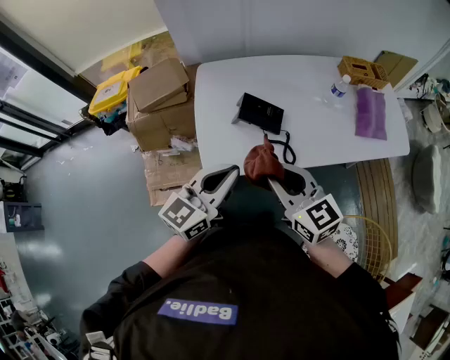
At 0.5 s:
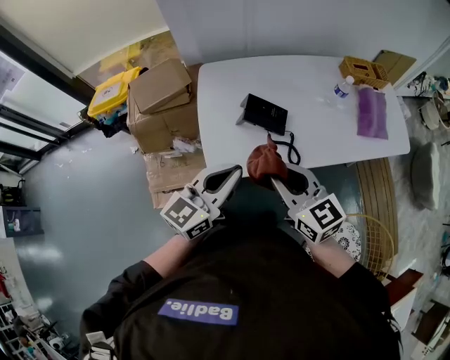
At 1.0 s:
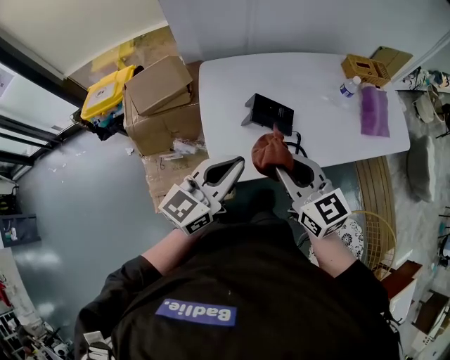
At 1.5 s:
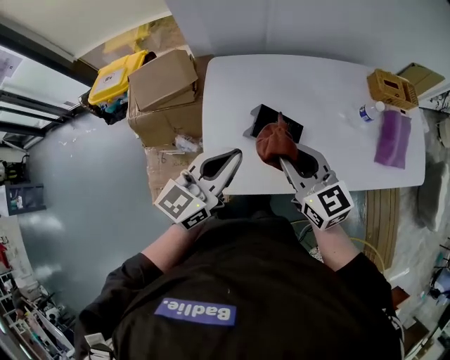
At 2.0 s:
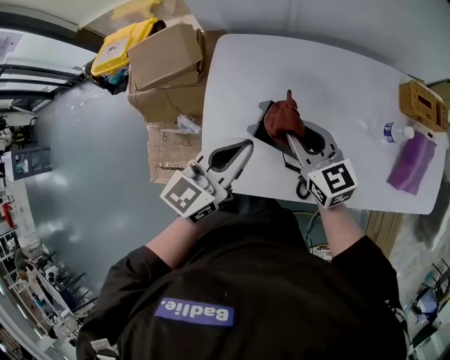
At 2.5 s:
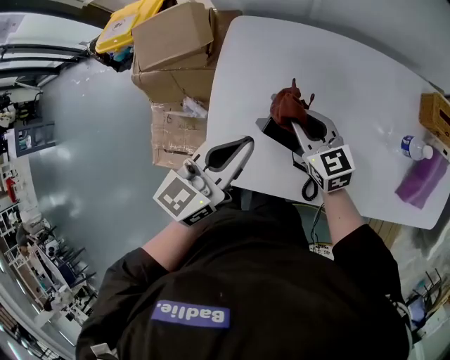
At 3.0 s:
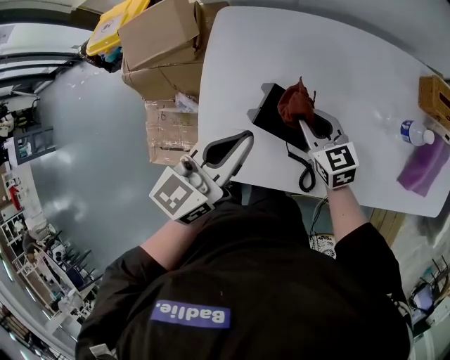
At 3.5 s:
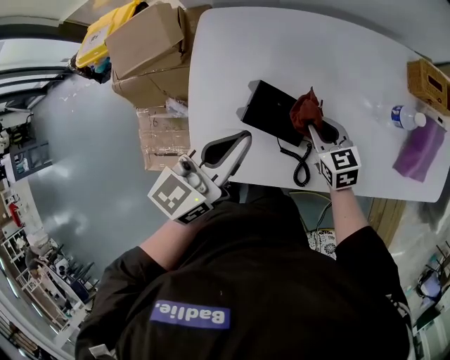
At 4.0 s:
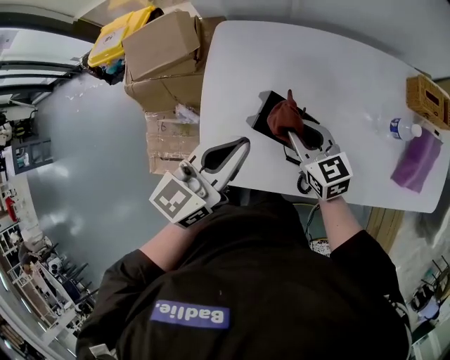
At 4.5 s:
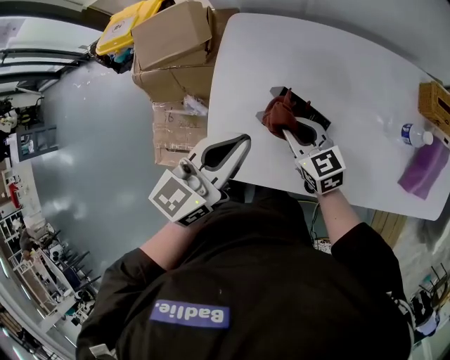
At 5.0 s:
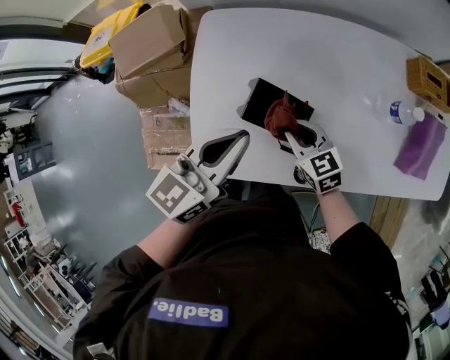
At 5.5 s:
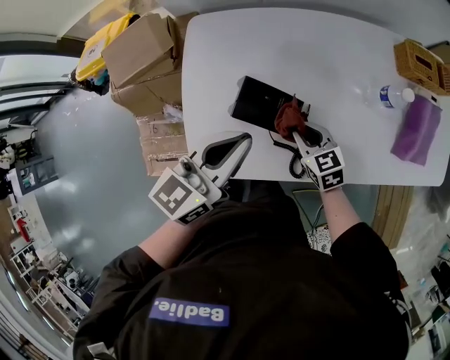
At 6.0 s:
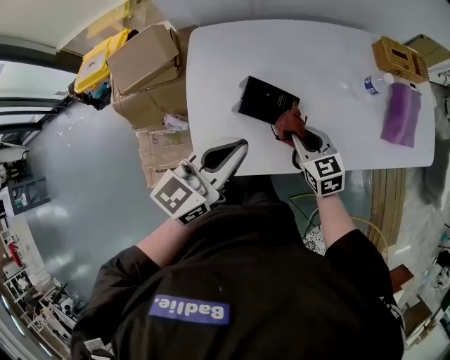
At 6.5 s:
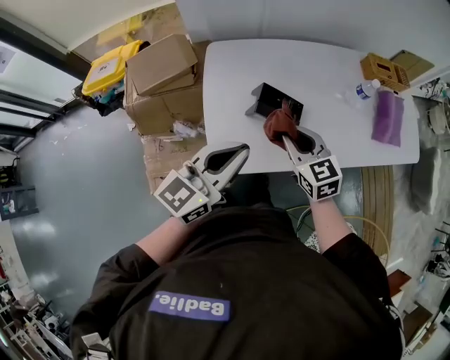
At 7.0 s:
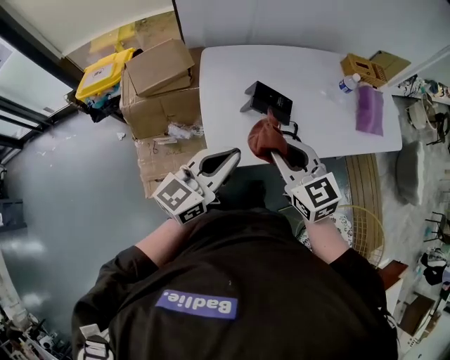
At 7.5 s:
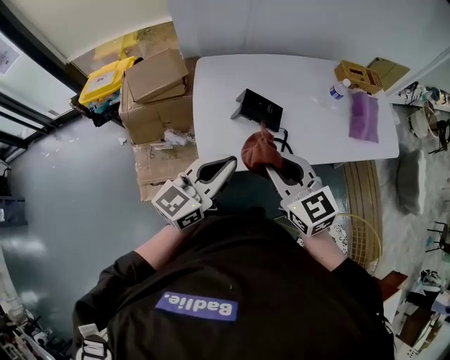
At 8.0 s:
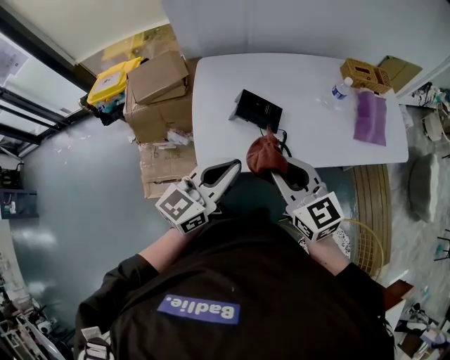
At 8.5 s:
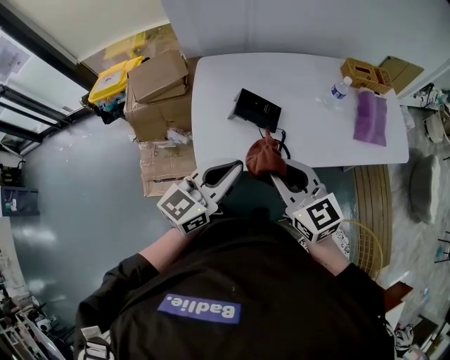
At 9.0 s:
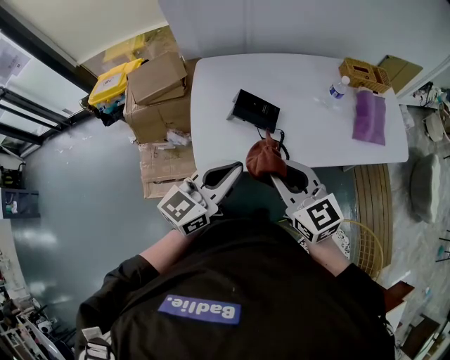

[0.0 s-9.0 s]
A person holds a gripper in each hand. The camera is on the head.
0.0 to 2.0 s: The left gripper heads forward, covering about 20 cm. The right gripper is displaced forward and downward by some 30 cm.
2.0 to 4.5 s: The right gripper is displaced downward by approximately 10 cm.
4.5 to 7.0 s: The left gripper goes approximately 20 cm backward, and rotates approximately 20 degrees. The right gripper goes roughly 30 cm upward and backward, and swivels approximately 20 degrees.
7.0 to 9.0 s: The grippers both shift to the right by roughly 10 cm.

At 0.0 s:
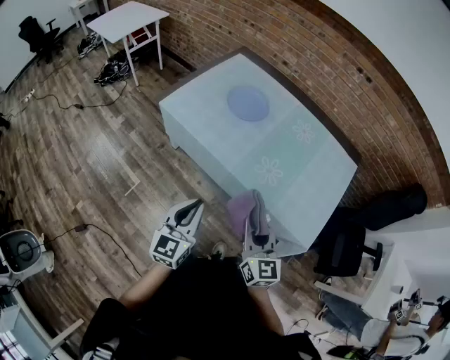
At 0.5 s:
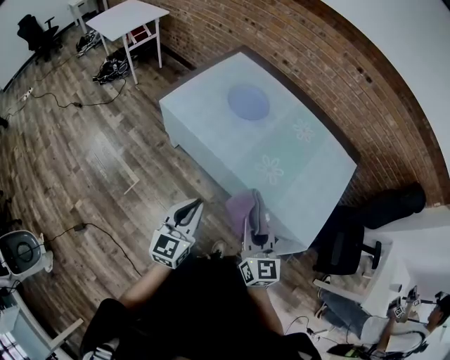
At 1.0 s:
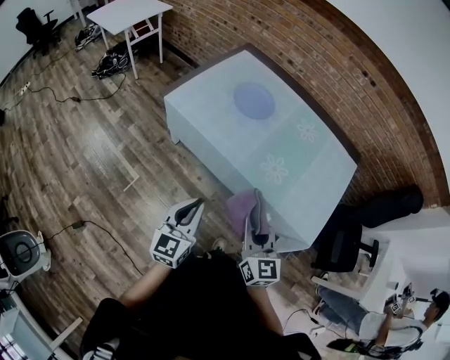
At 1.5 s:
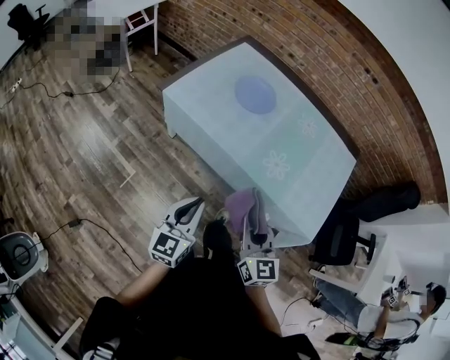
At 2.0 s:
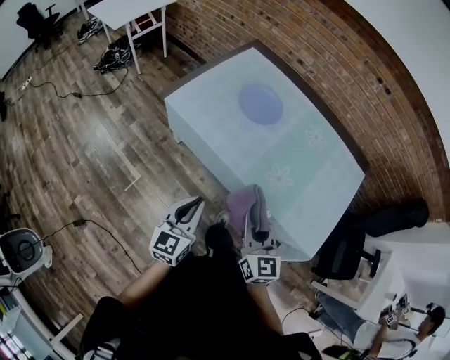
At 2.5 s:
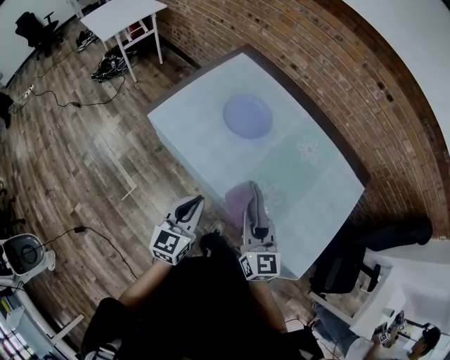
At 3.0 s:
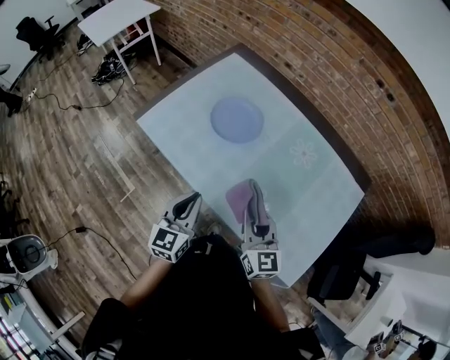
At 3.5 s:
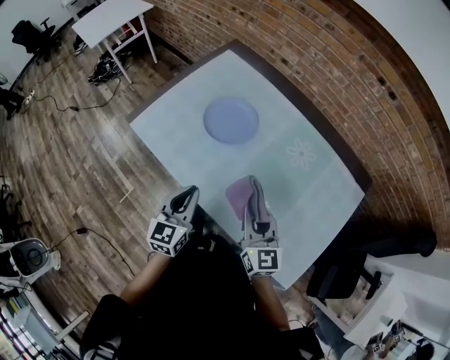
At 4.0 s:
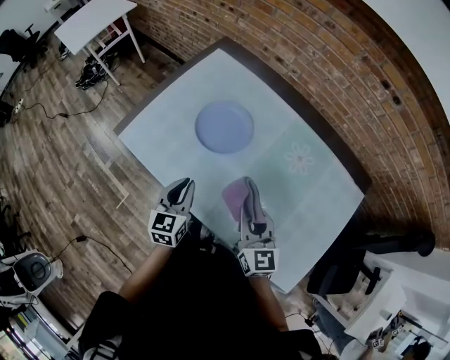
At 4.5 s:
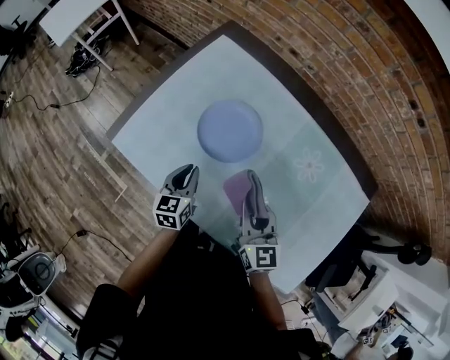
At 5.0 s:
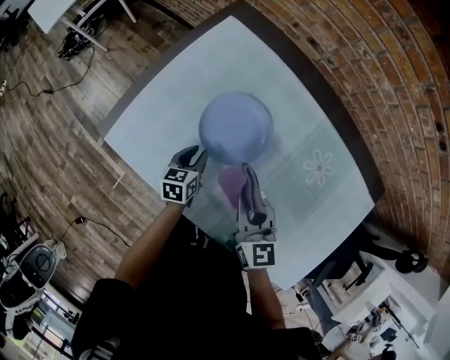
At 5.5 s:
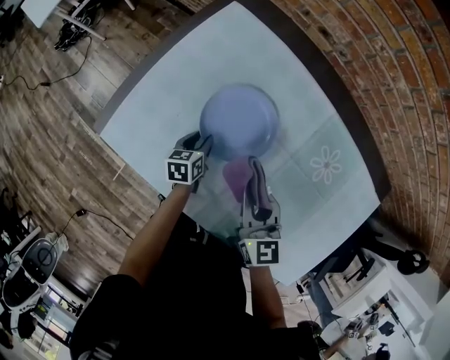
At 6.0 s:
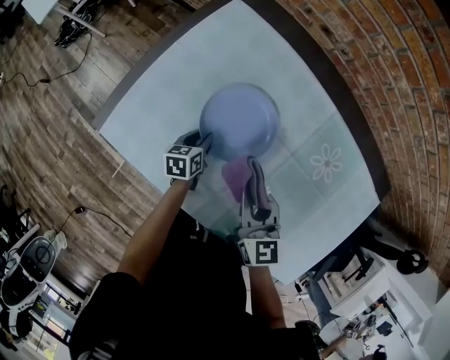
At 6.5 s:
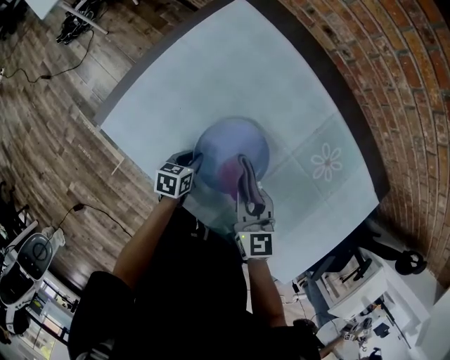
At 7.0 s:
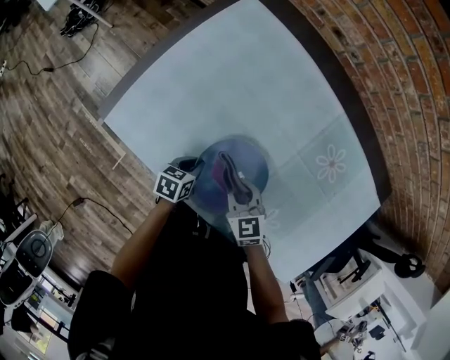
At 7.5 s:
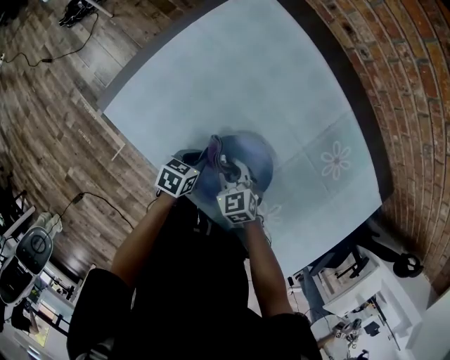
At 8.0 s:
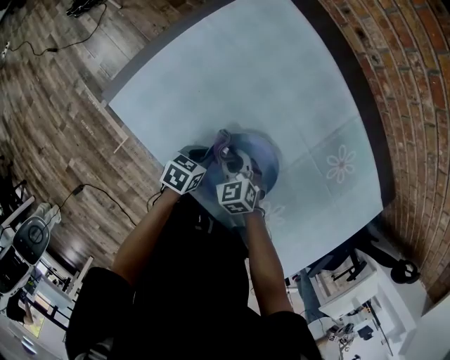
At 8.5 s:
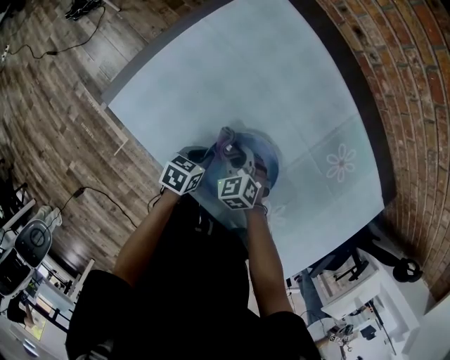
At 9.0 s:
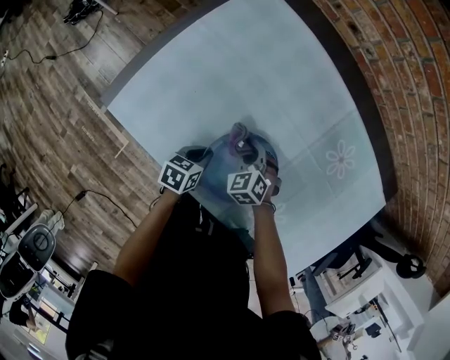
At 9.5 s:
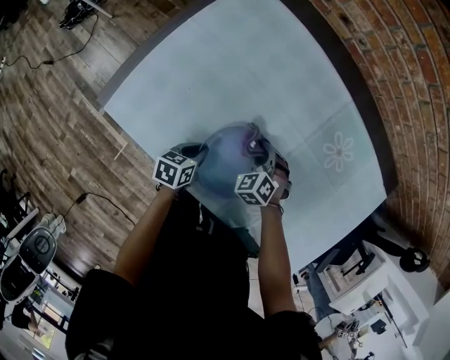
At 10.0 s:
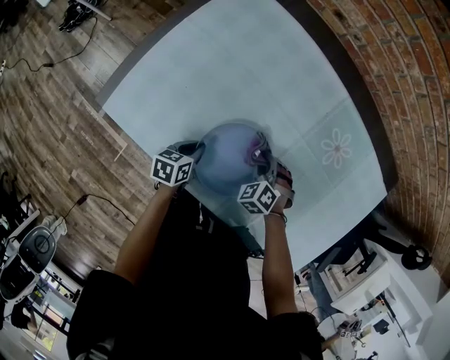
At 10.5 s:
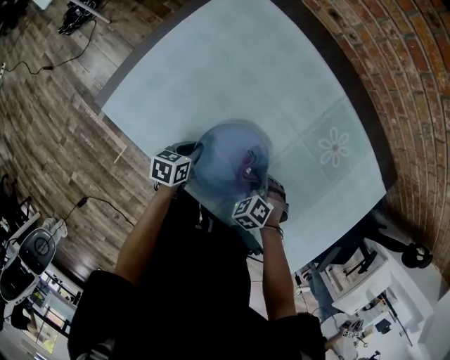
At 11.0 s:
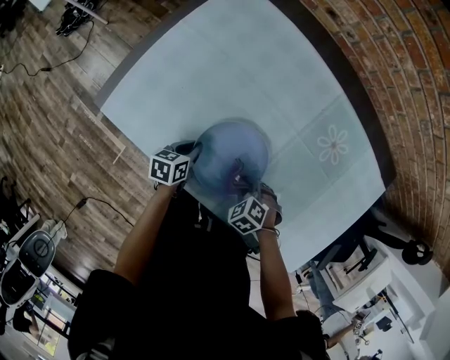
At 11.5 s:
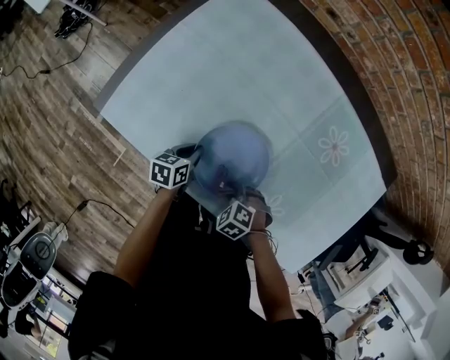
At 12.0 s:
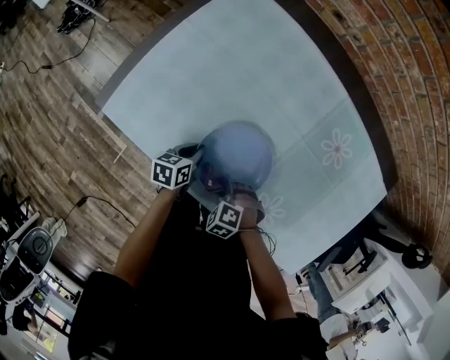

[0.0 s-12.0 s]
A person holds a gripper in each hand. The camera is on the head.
0.0 to 2.0 s: Both grippers move forward and to the left, roughly 10 cm.
2.0 to 4.0 s: Both grippers move forward and to the right, roughly 35 cm.
4.0 to 6.0 s: The right gripper goes approximately 20 cm forward, downward and to the left. Meanwhile the left gripper goes some 35 cm downward and forward, rotates roughly 30 degrees, and opens.
6.0 to 8.0 s: The right gripper shifts some 20 cm downward and to the left, and swivels approximately 40 degrees. Meanwhile the left gripper travels backward by some 10 cm, and swivels approximately 20 degrees.
8.0 to 10.0 s: The right gripper moves to the right, roughly 15 cm, and swivels about 30 degrees.
10.0 to 12.0 s: The right gripper changes place by roughly 15 cm, and turns by about 30 degrees.

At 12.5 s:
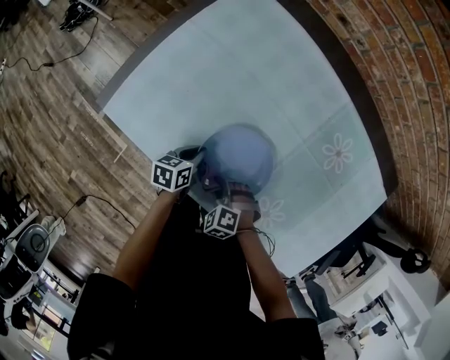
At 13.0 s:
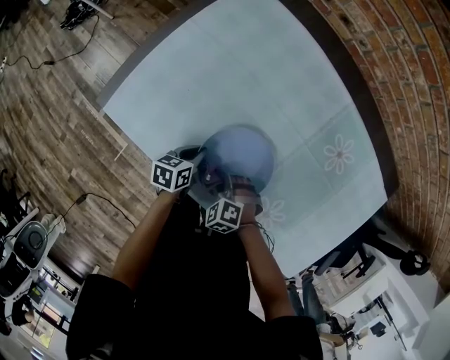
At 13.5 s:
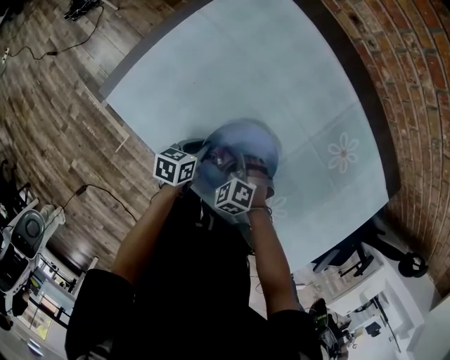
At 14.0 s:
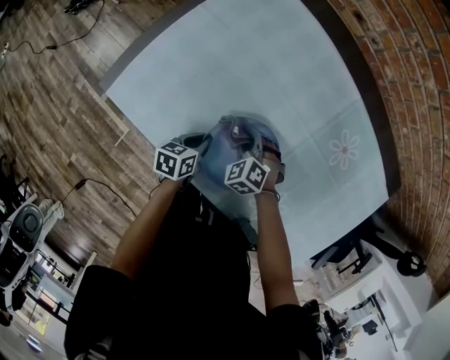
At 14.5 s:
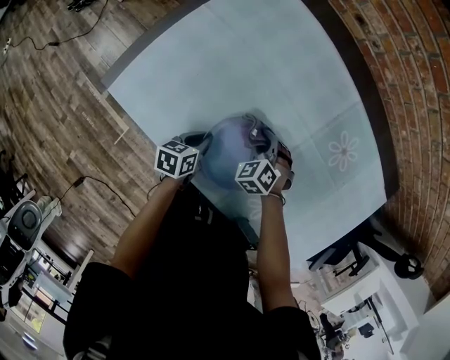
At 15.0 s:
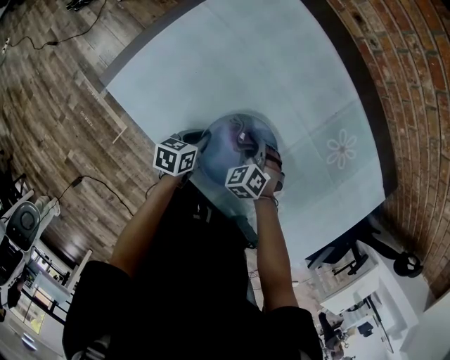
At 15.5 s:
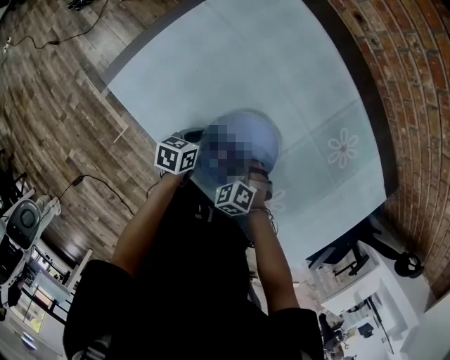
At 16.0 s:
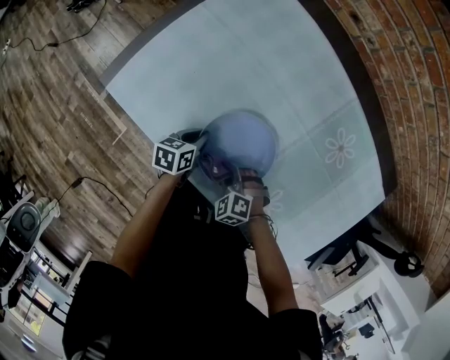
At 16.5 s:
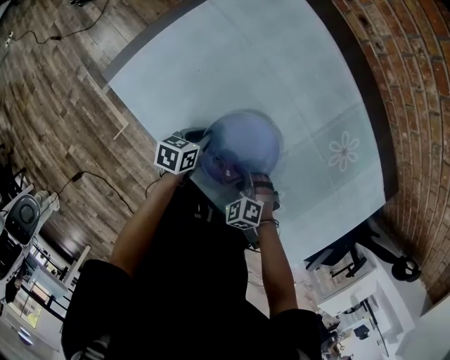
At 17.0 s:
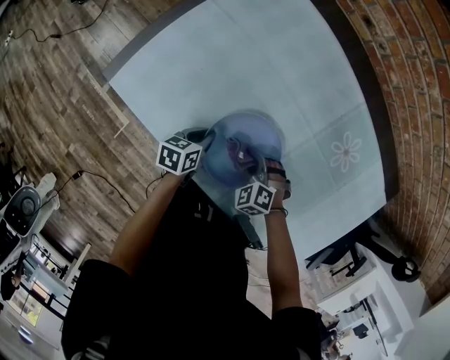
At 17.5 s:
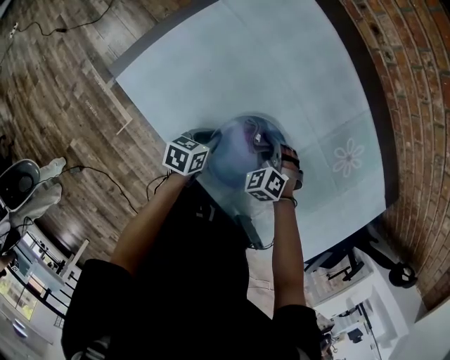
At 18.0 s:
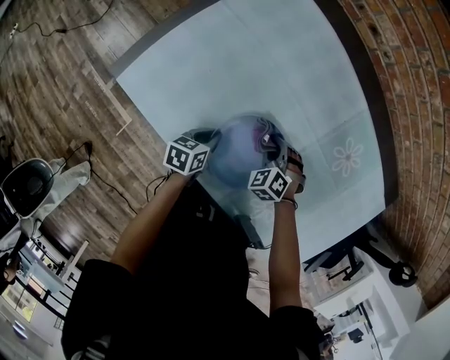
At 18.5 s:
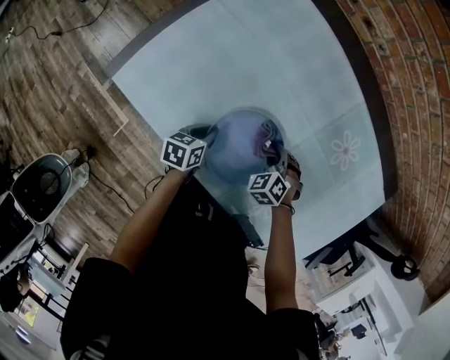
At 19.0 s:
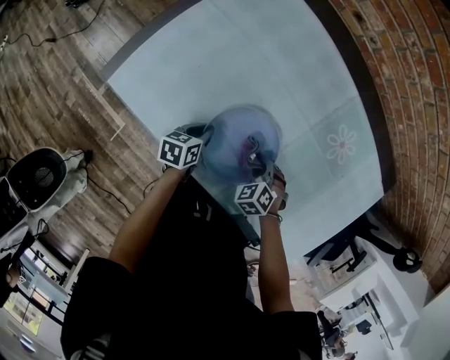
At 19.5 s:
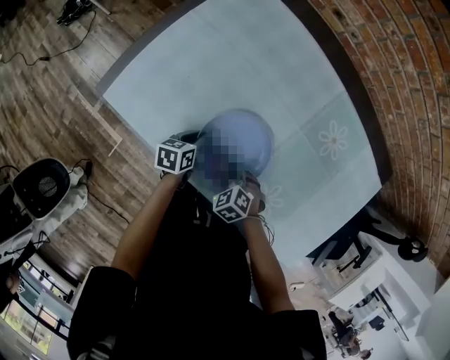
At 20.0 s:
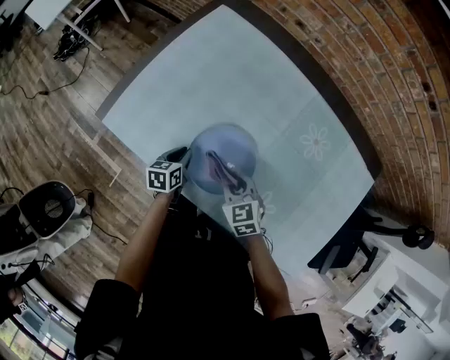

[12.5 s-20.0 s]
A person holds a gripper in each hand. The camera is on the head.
12.5 to 14.5 s: The right gripper heads forward, covering some 15 cm, and turns by some 20 degrees.
14.5 to 16.5 s: The right gripper shifts some 15 cm backward, and changes its angle by some 30 degrees.
16.5 to 18.0 s: The right gripper shifts roughly 15 cm forward.
18.0 to 20.0 s: The right gripper heads upward and backward, covering approximately 15 cm, and turns by some 40 degrees.
